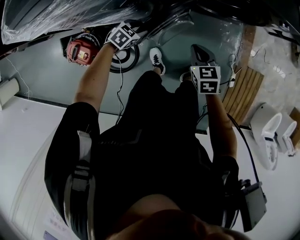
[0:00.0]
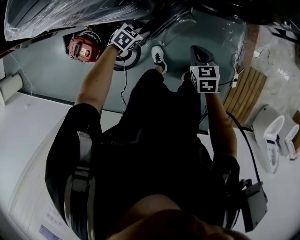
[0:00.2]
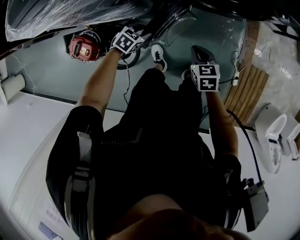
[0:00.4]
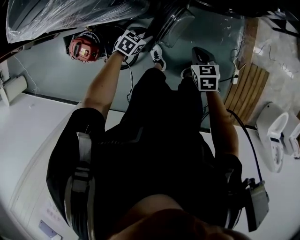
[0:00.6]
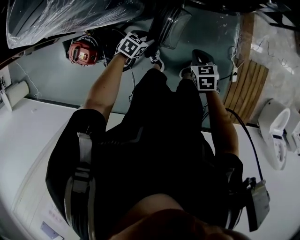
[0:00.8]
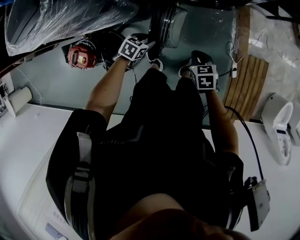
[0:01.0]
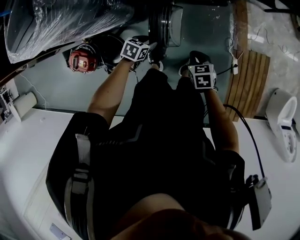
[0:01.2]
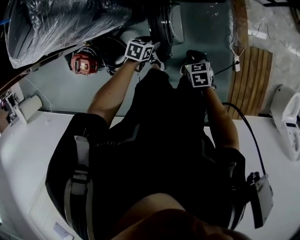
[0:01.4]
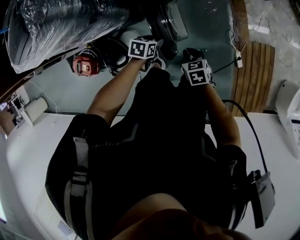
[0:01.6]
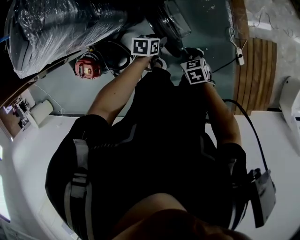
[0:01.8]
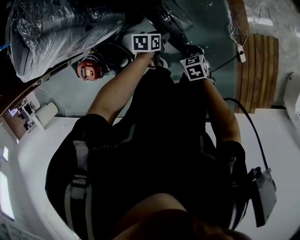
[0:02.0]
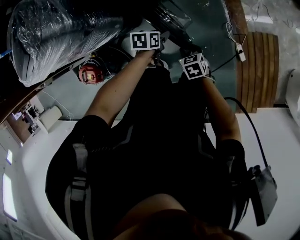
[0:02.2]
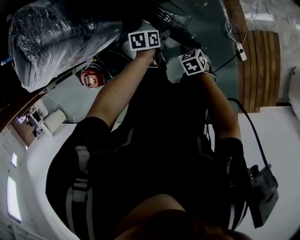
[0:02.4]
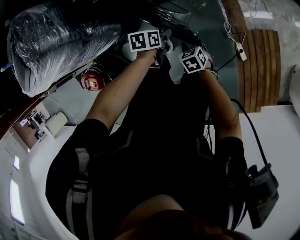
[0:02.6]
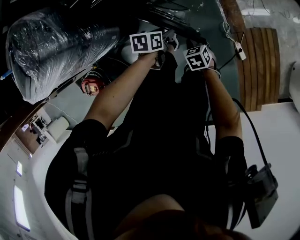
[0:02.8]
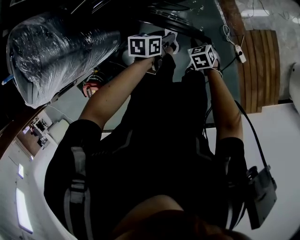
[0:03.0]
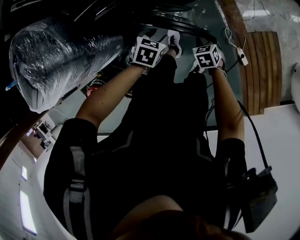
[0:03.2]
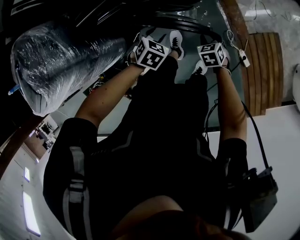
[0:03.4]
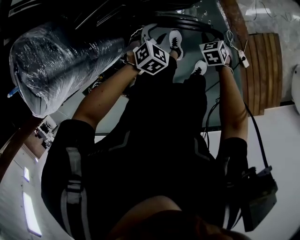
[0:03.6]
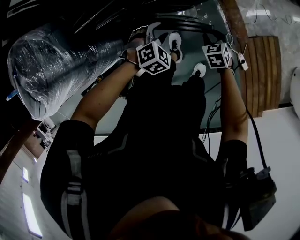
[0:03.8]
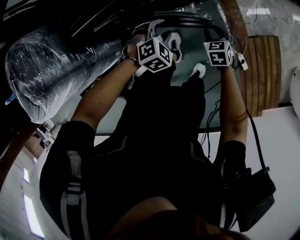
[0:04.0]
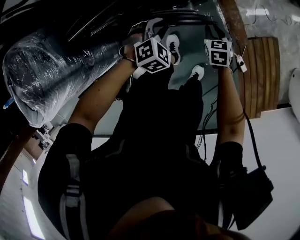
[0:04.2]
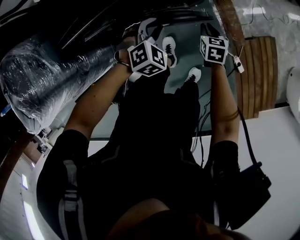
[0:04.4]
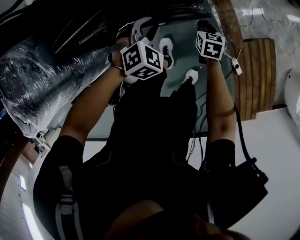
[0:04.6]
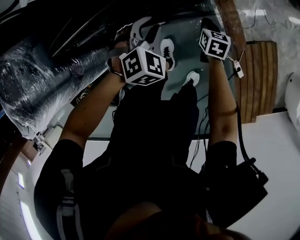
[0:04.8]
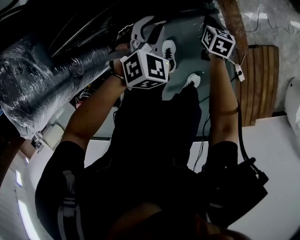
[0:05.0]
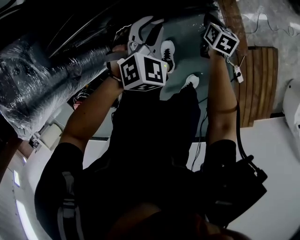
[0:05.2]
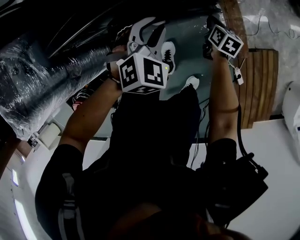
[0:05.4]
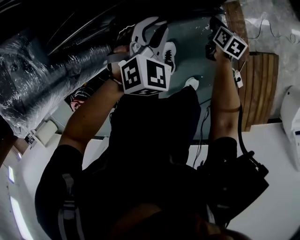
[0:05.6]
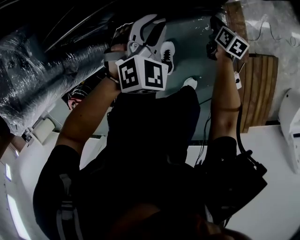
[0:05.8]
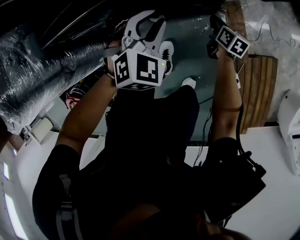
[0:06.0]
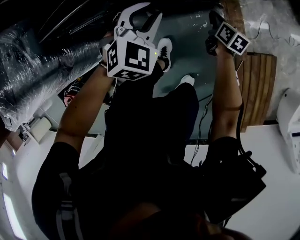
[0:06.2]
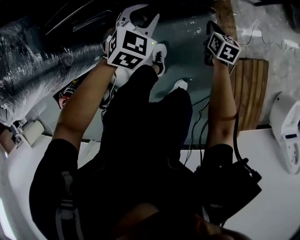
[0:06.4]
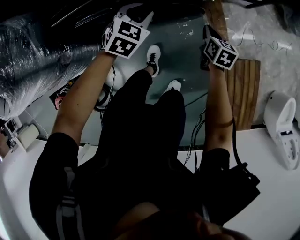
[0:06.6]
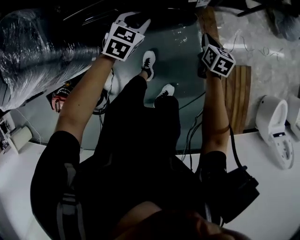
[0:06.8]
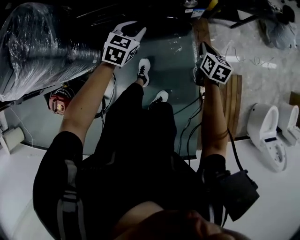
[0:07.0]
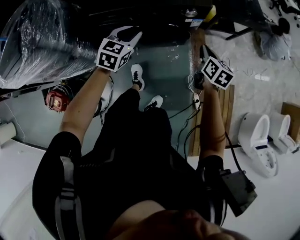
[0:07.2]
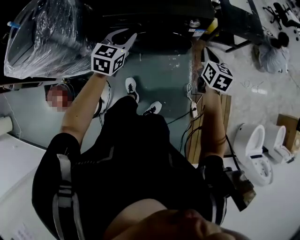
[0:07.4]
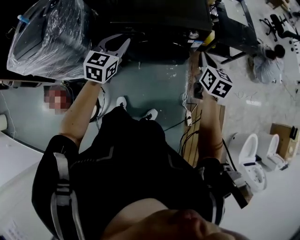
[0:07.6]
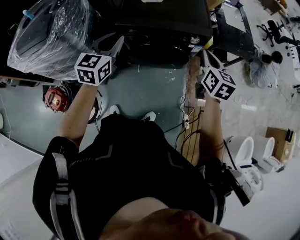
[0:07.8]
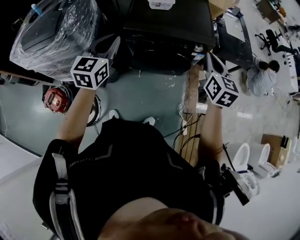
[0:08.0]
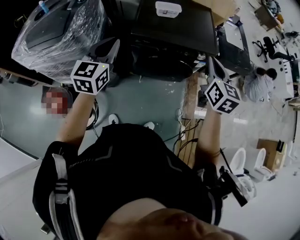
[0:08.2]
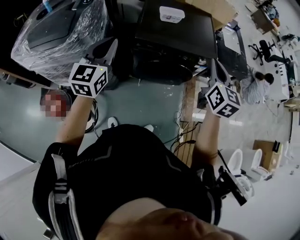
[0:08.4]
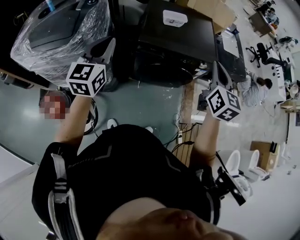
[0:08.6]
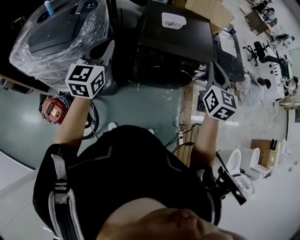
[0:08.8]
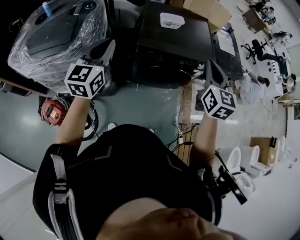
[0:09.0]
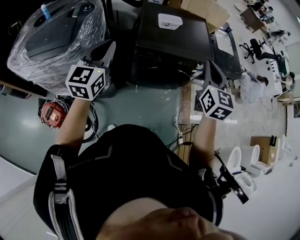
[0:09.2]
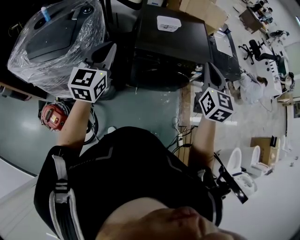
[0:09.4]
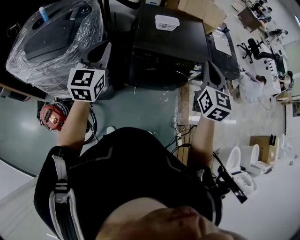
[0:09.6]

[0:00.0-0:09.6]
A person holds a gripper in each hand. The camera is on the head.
0:00.0 to 0:01.6: The right gripper heads to the right and downward, covering roughly 20 cm. Meanwhile the left gripper travels to the right by about 25 cm, and changes its angle by roughly 30 degrees.
0:01.6 to 0:03.2: The right gripper shifts some 25 cm forward, to the right and downward. The left gripper goes roughly 20 cm forward and to the right, and rotates about 30 degrees.
0:03.2 to 0:04.8: Both grippers travel together forward, about 20 cm. The right gripper changes its angle by some 30 degrees, and closes. Meanwhile the left gripper rotates roughly 40 degrees.
0:04.8 to 0:06.4: The left gripper changes its angle by roughly 20 degrees.
0:06.4 to 0:08.0: The right gripper heads upward, covering some 60 cm, and swivels about 40 degrees, while the left gripper moves upward, backward and to the left, roughly 50 cm, and angles its fingers upward, by approximately 30 degrees.
0:08.0 to 0:09.6: Both grippers move to the left and upward, some 15 cm.

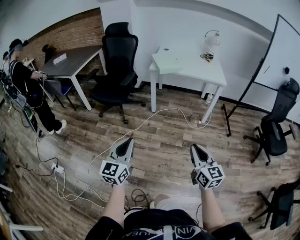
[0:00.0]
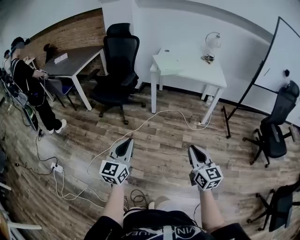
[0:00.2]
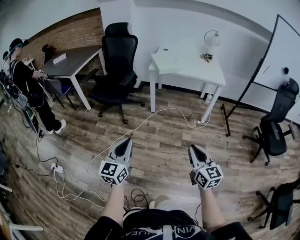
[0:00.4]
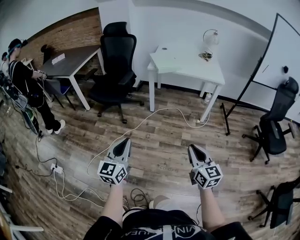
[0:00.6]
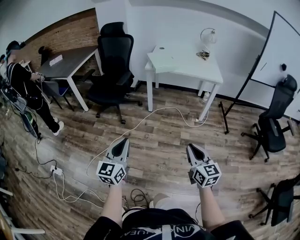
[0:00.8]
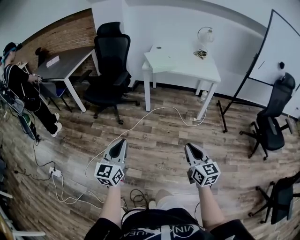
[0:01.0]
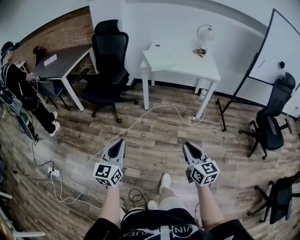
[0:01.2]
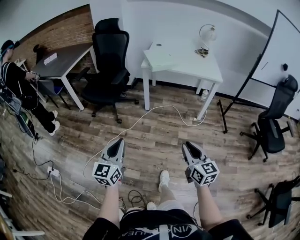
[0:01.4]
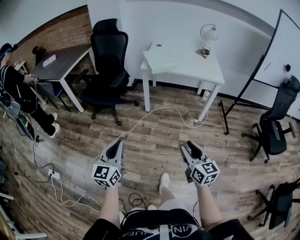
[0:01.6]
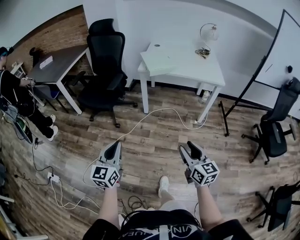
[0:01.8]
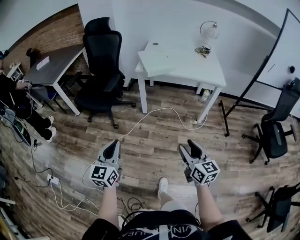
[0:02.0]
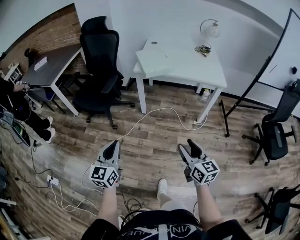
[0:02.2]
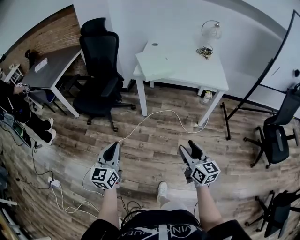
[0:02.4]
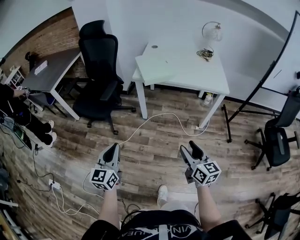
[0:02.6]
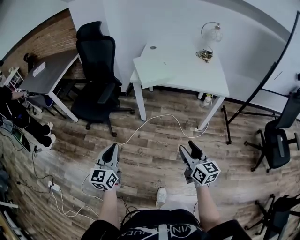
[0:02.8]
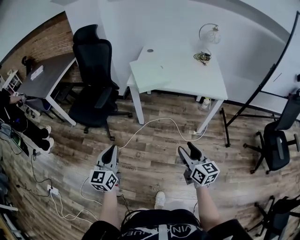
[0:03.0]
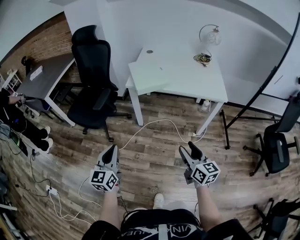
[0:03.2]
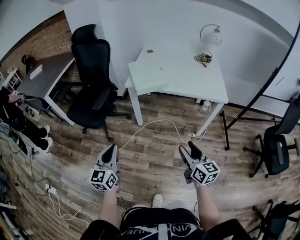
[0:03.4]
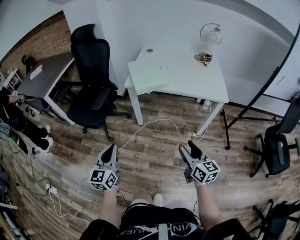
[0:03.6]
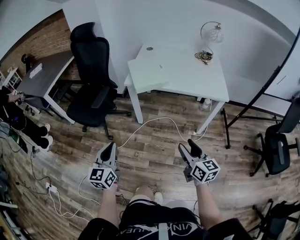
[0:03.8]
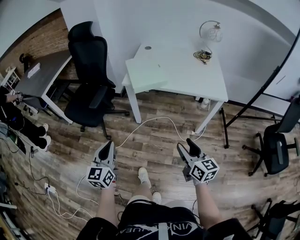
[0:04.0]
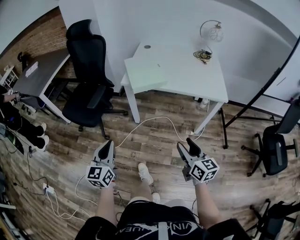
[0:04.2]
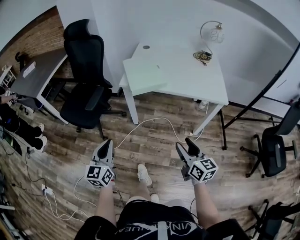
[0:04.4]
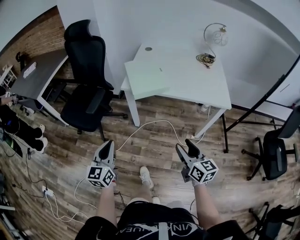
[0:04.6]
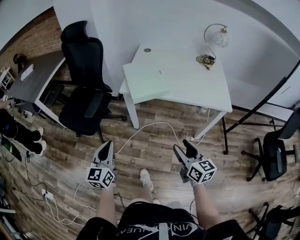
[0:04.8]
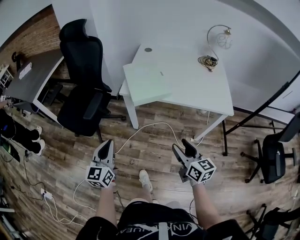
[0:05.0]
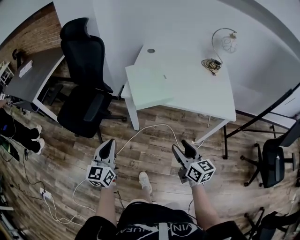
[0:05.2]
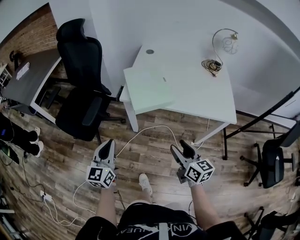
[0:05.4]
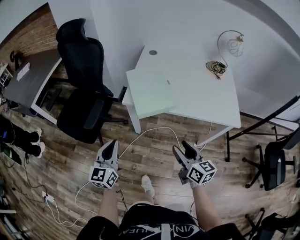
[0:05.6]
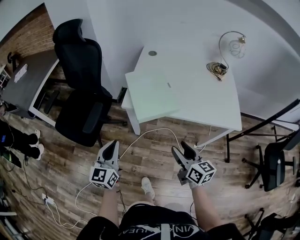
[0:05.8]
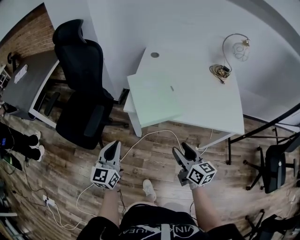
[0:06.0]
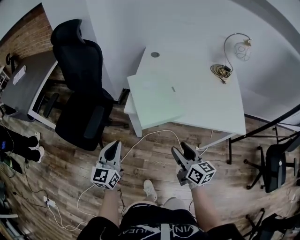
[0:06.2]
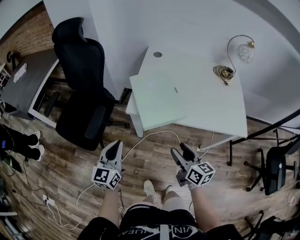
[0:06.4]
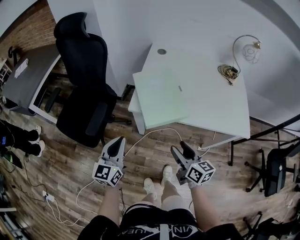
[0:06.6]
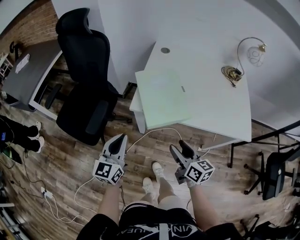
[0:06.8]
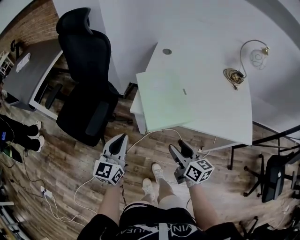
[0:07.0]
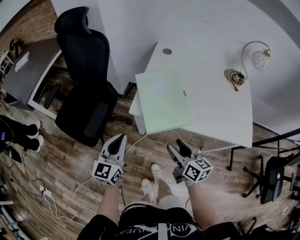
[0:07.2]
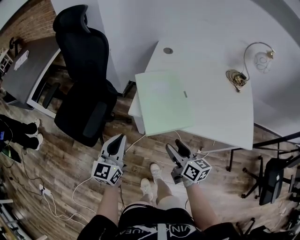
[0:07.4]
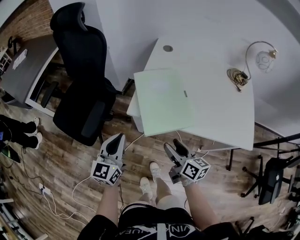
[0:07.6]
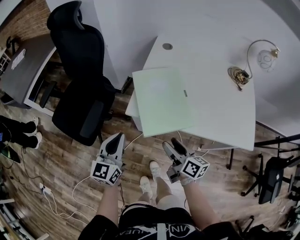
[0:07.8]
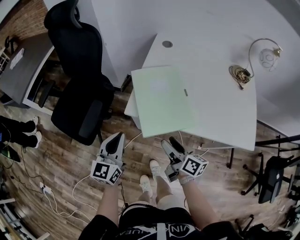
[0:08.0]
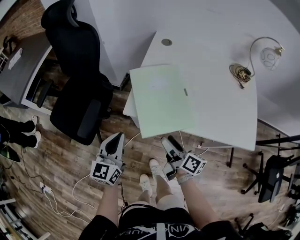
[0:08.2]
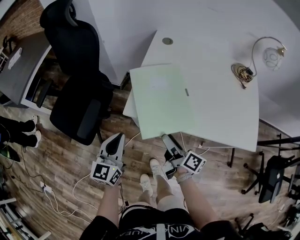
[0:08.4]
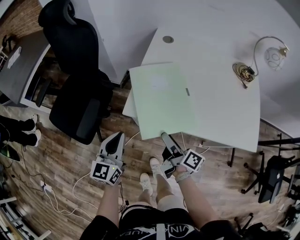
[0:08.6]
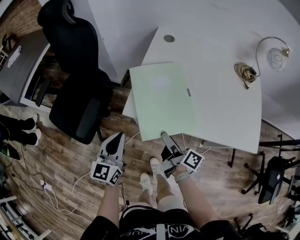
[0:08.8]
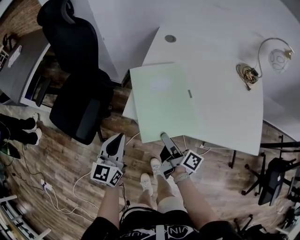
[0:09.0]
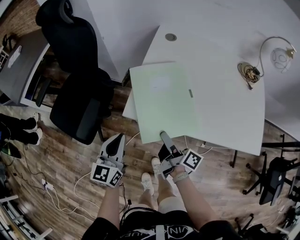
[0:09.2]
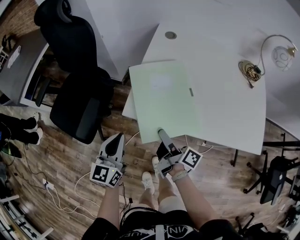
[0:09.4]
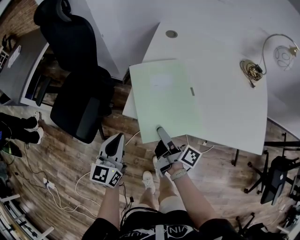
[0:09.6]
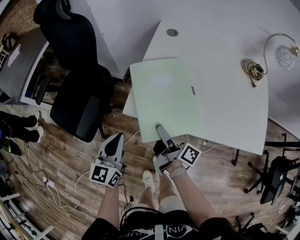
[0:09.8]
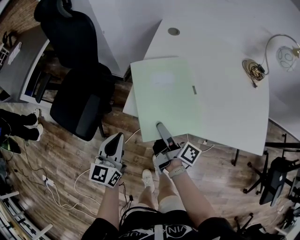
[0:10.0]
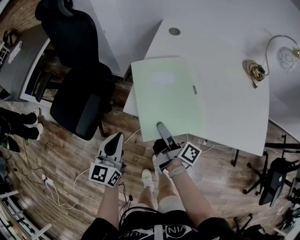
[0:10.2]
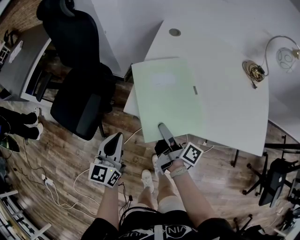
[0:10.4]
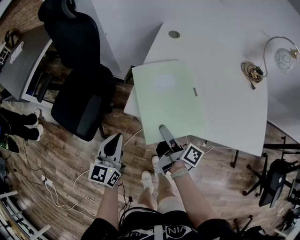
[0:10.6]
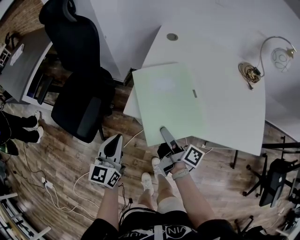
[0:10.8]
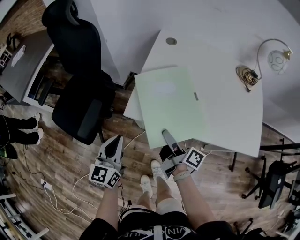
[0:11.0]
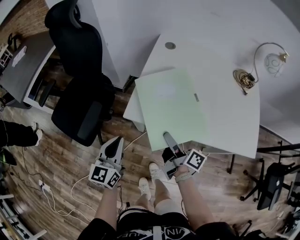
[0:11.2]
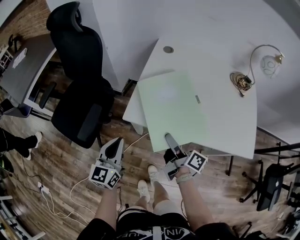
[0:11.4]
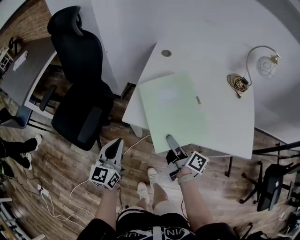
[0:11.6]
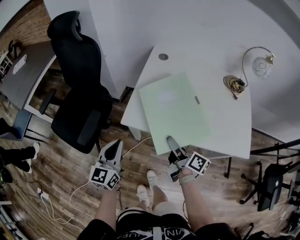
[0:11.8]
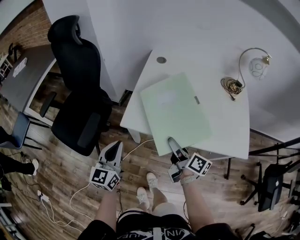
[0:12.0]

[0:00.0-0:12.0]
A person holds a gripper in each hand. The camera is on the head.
0:00.0 to 0:01.6: The grippers both shift forward by approximately 10 cm.
0:01.6 to 0:03.0: The left gripper heads forward, covering roughly 25 cm. Meanwhile the right gripper is displaced forward and to the right by about 25 cm.
0:03.0 to 0:04.4: Both grippers travel together forward, about 10 cm.
0:04.4 to 0:06.0: The two grippers go some 25 cm forward.
0:06.0 to 0:07.6: The right gripper travels forward, downward and to the left by some 15 cm; the left gripper goes approximately 10 cm forward.
0:07.6 to 0:09.0: The right gripper travels forward by some 10 cm, and turns by approximately 30 degrees; the left gripper changes place by approximately 5 cm.
0:09.0 to 0:10.4: The grippers make only small movements.
0:10.4 to 0:12.0: The right gripper is displaced upward and to the right by approximately 10 cm, and rotates about 20 degrees. Meanwhile the left gripper shifts roughly 5 cm upward.

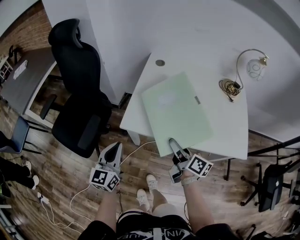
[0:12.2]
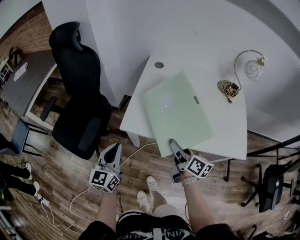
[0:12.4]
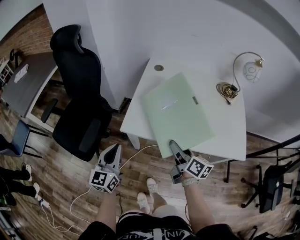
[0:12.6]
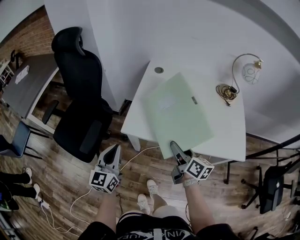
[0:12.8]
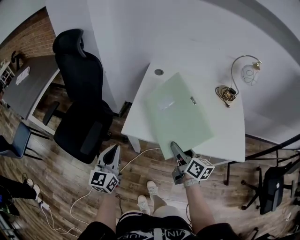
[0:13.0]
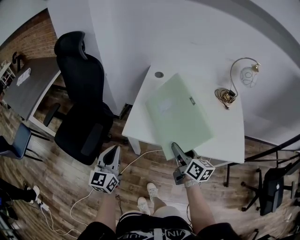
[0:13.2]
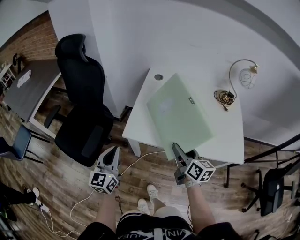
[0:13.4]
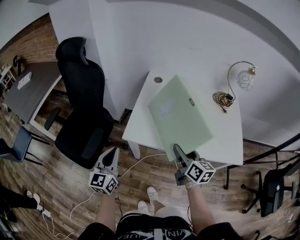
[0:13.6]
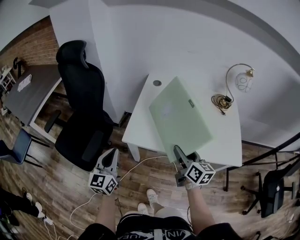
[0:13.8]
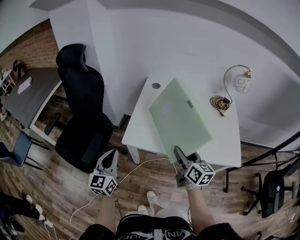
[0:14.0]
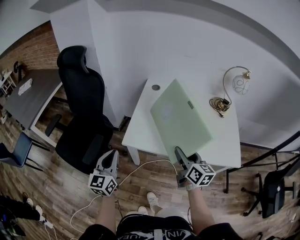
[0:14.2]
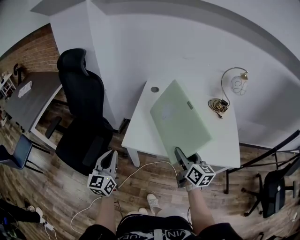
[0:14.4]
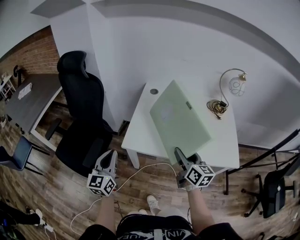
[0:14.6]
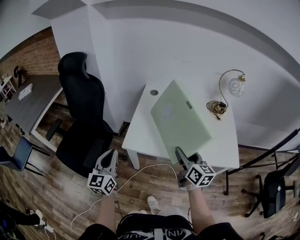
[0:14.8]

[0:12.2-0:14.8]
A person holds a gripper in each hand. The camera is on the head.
0:12.2 to 0:13.4: The right gripper changes place by approximately 5 cm, and changes its angle by some 20 degrees.
0:13.4 to 0:14.8: The right gripper travels upward by approximately 5 cm.
